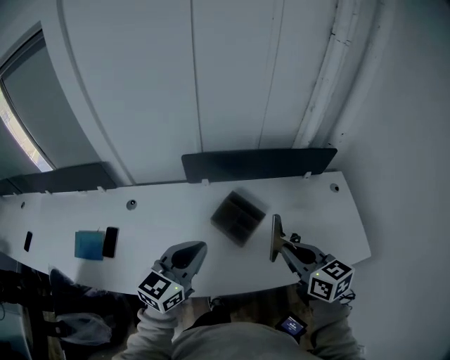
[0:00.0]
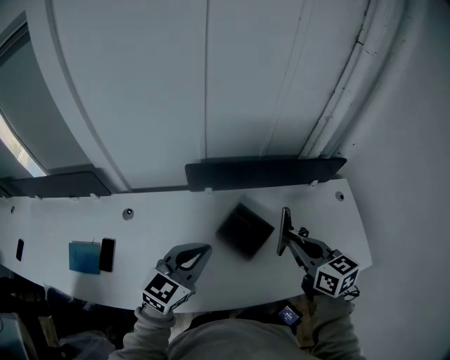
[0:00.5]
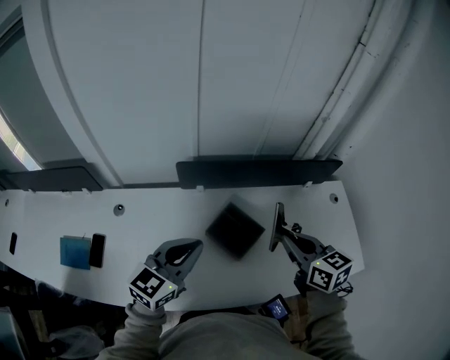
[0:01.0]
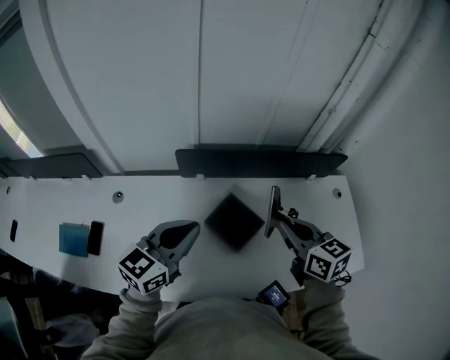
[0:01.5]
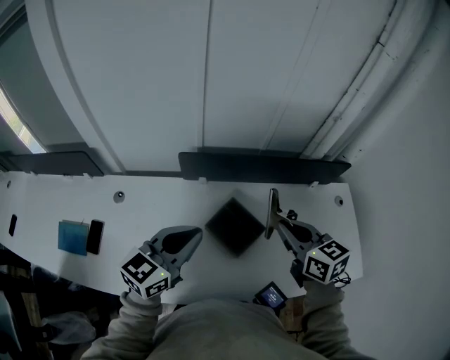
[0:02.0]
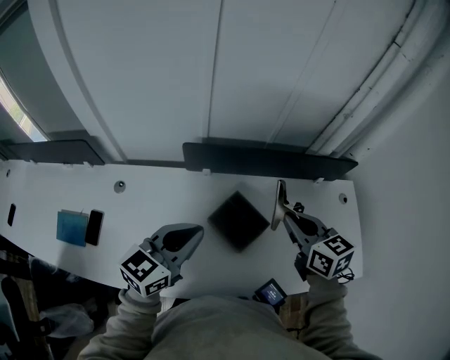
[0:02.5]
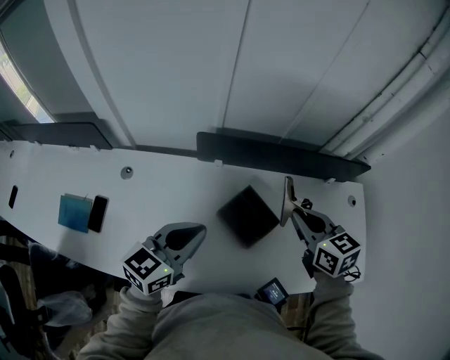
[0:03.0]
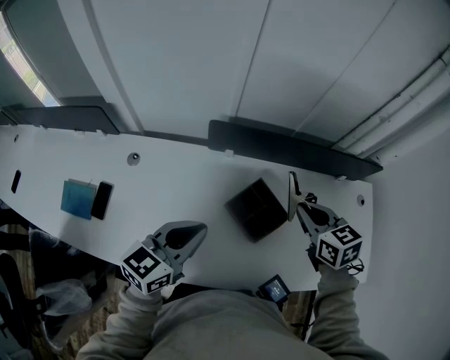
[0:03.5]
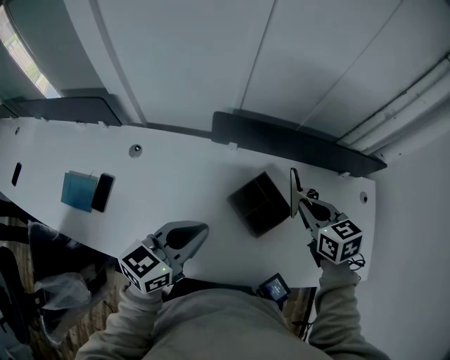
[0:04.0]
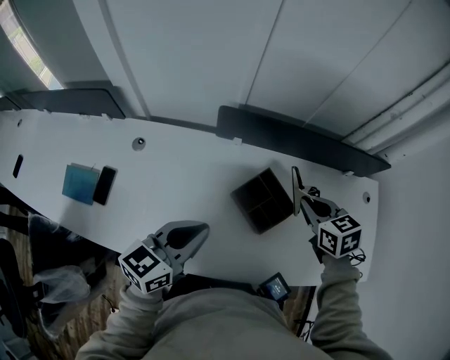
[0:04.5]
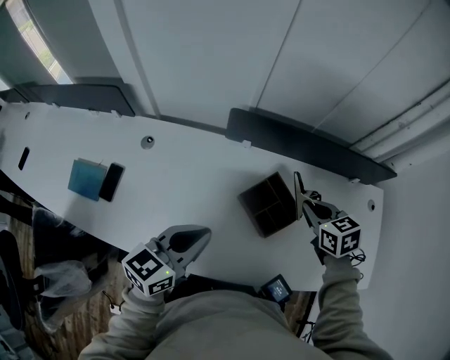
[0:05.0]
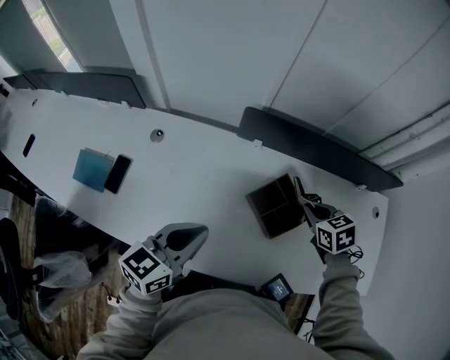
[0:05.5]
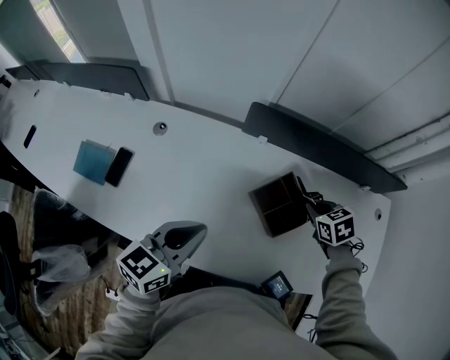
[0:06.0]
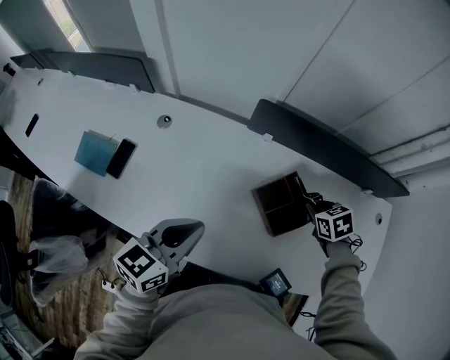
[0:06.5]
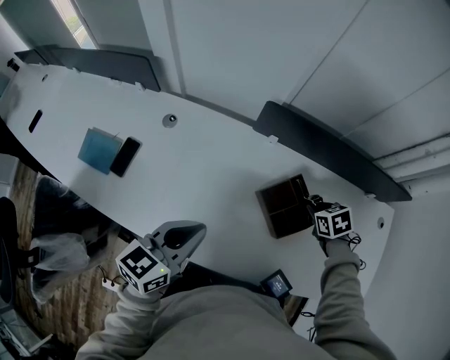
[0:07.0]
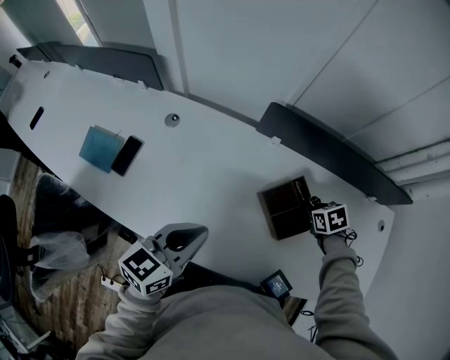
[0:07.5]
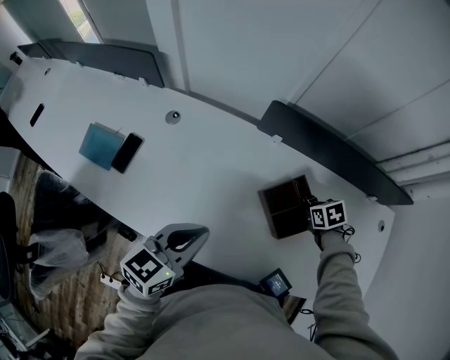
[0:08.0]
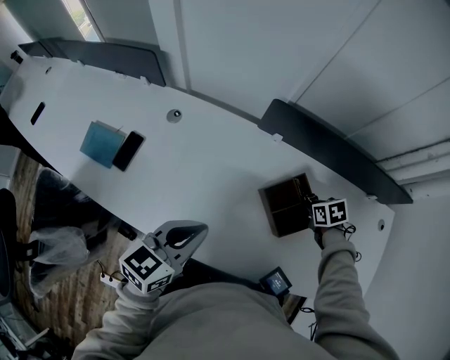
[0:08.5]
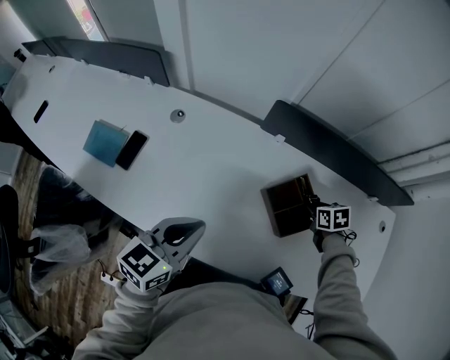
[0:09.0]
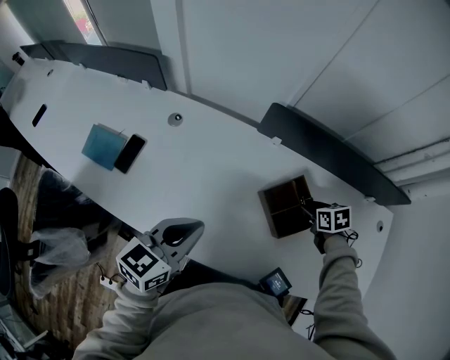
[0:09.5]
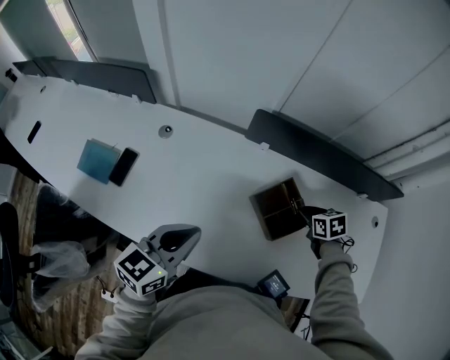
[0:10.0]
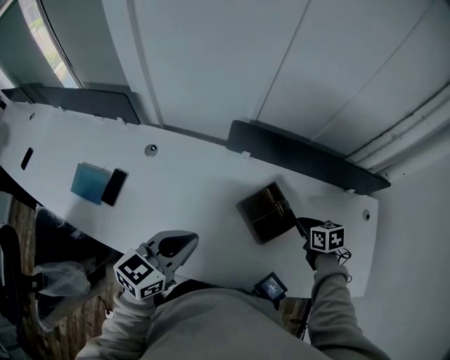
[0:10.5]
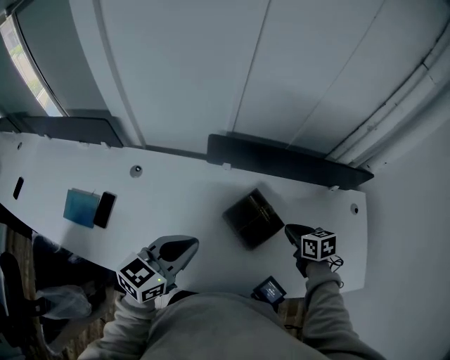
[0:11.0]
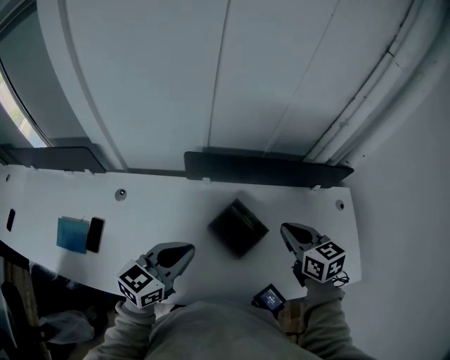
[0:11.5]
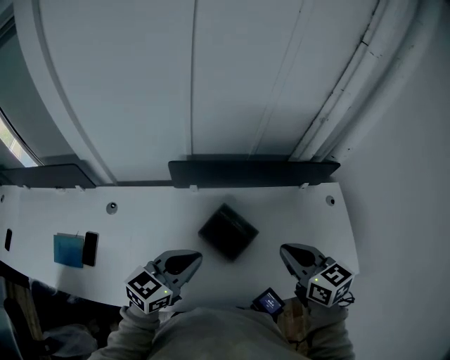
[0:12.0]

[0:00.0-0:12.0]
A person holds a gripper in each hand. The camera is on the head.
0:00.0 to 0:02.0: Both grippers move forward, some 15 cm.
0:02.0 to 0:04.0: The two grippers go some 10 cm downward.
0:04.0 to 0:06.0: The left gripper travels to the left by approximately 5 cm. Meanwhile the right gripper heads downward, covering approximately 10 cm, and rotates approximately 20 degrees.
0:06.0 to 0:08.0: The right gripper moves downward, some 10 cm.
0:08.0 to 0:10.0: There are only small adjustments of the grippers.
0:10.0 to 0:12.0: The left gripper is displaced to the right by some 15 cm, and rotates approximately 30 degrees. The right gripper goes about 30 cm upward and backward, and tilts its fingers approximately 30 degrees upward.

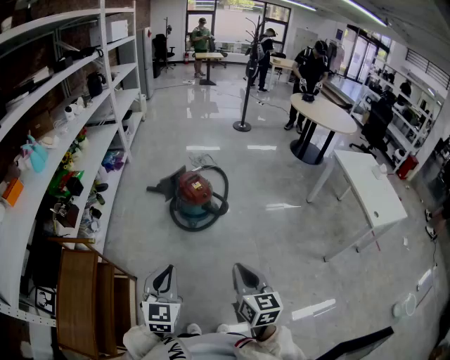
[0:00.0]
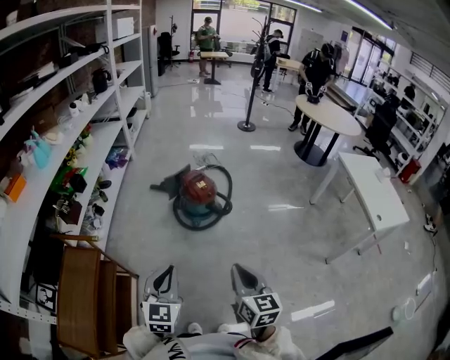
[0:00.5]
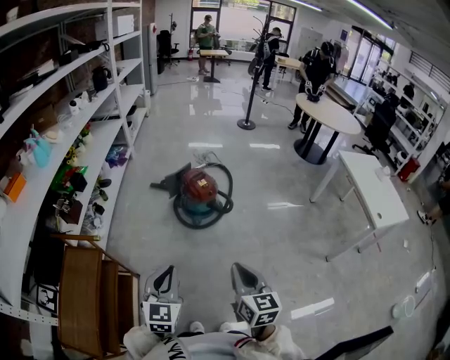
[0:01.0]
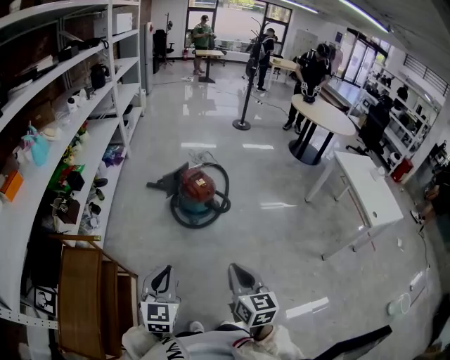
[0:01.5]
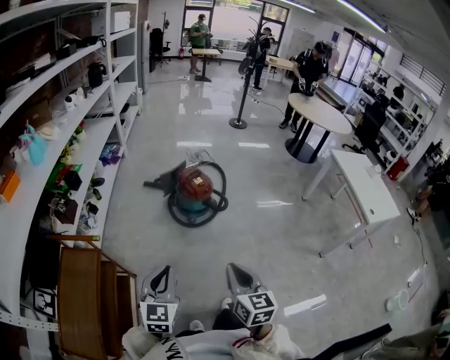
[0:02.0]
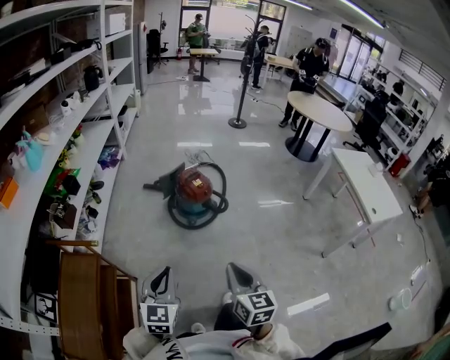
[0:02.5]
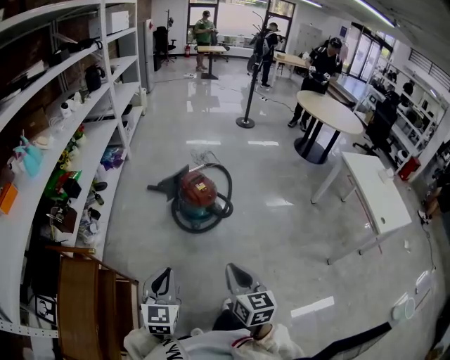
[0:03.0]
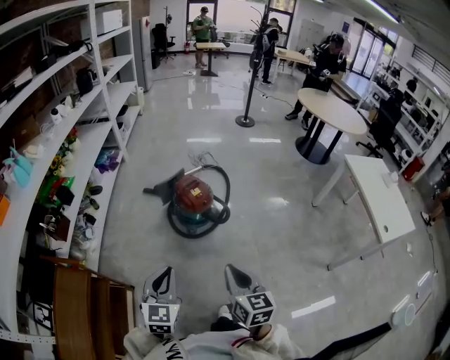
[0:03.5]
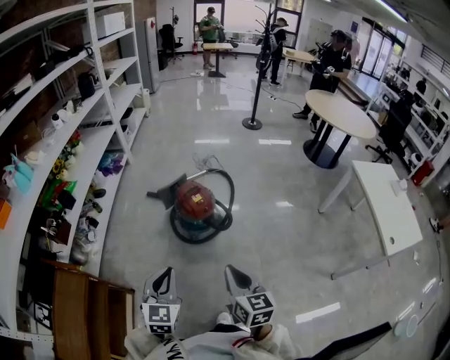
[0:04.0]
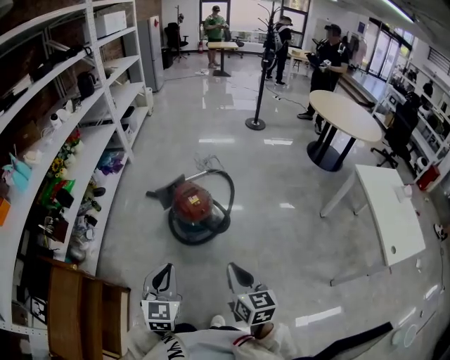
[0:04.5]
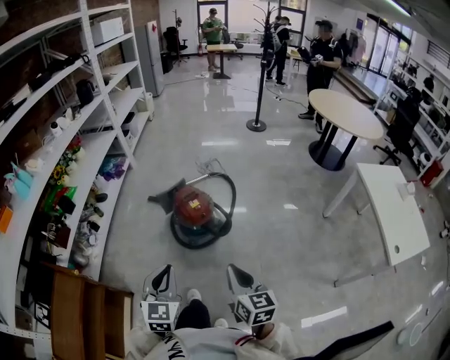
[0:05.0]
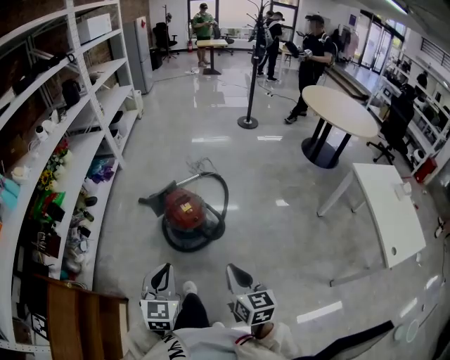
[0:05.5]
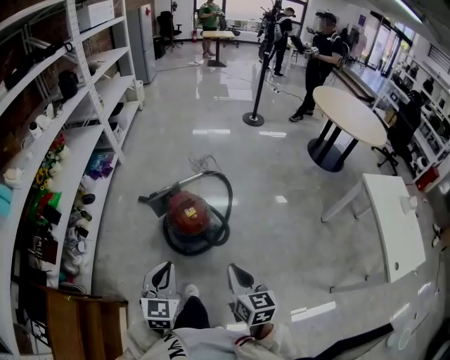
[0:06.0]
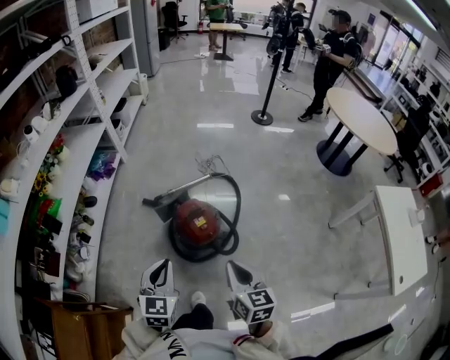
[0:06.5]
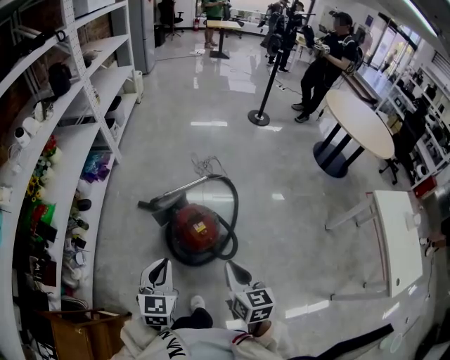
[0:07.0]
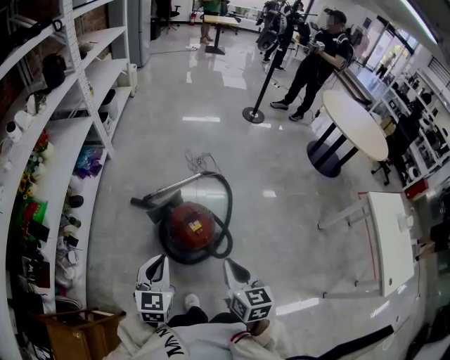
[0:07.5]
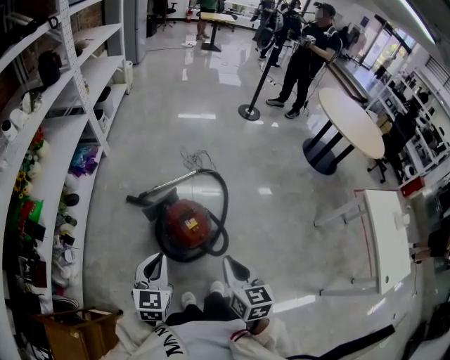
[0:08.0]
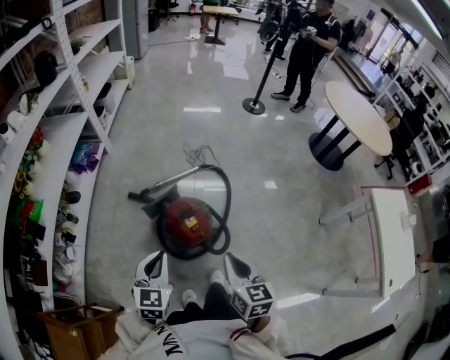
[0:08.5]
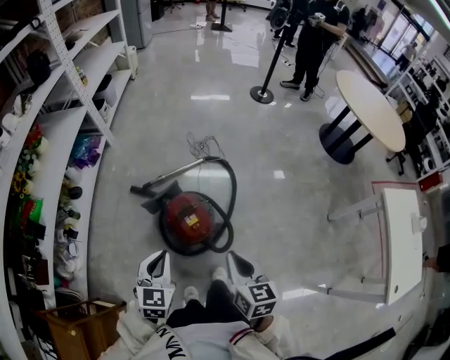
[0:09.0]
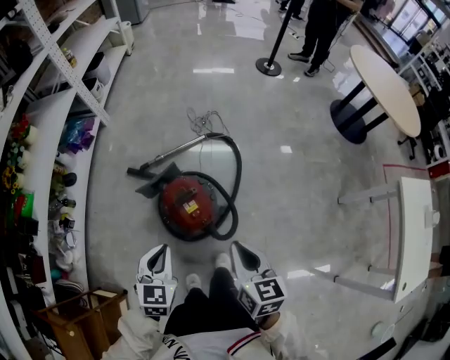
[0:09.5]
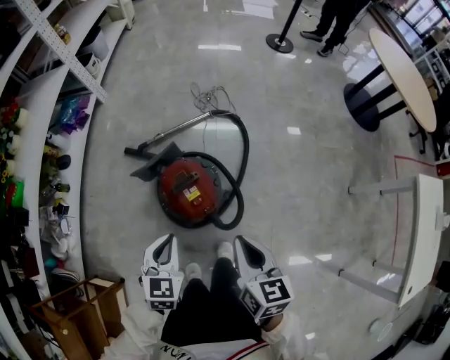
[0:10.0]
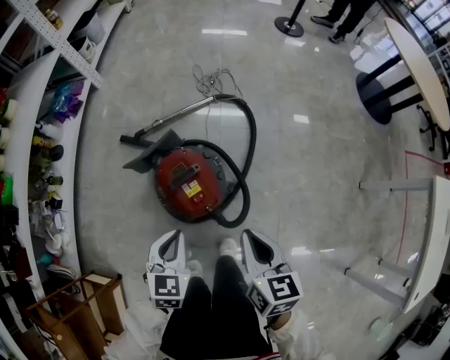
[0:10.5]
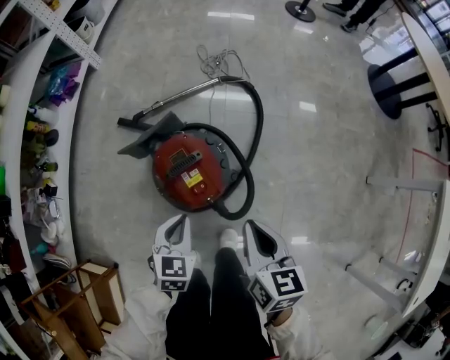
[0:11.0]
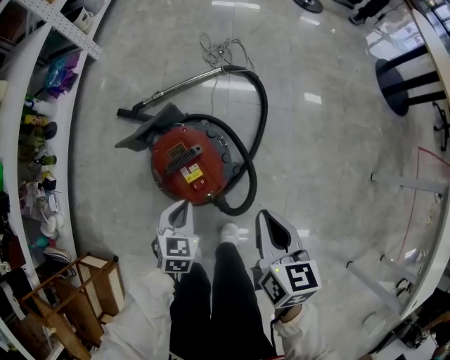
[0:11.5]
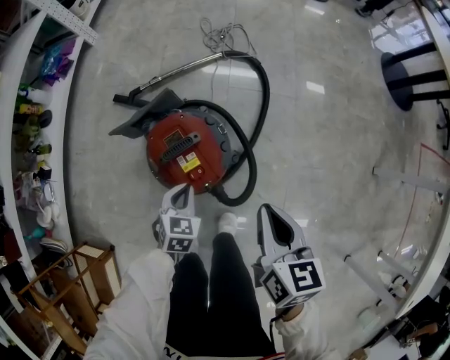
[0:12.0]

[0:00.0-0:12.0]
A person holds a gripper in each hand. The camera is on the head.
0:00.0 to 0:02.0: Both grippers move to the left, approximately 5 cm.
0:02.0 to 0:04.0: The grippers both shift forward and to the right by some 20 cm.
0:04.0 to 0:06.0: The grippers both shift forward by about 15 cm.
0:06.0 to 0:08.0: Both grippers travel together forward and to the left, approximately 15 cm.
0:08.0 to 0:10.0: The left gripper moves downward and to the right, about 15 cm. Meanwhile the right gripper travels downward, forward and to the right by roughly 15 cm.
0:10.0 to 0:12.0: The left gripper moves downward, roughly 25 cm. Meanwhile the right gripper goes about 10 cm downward and forward.

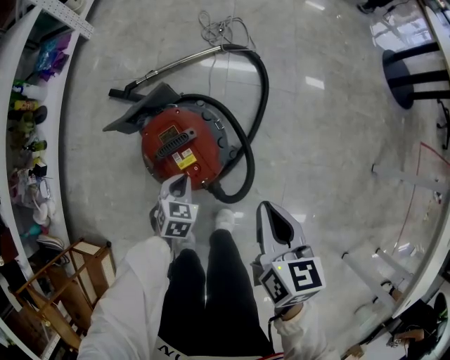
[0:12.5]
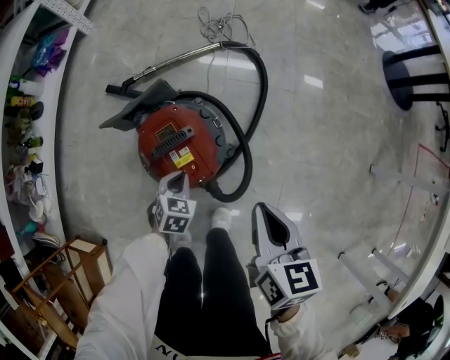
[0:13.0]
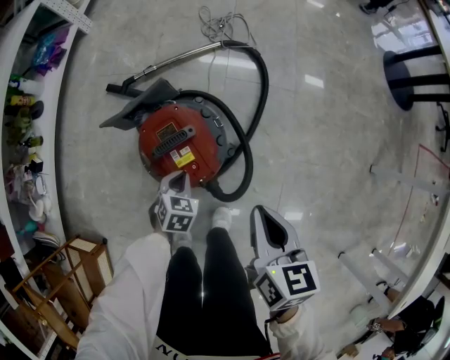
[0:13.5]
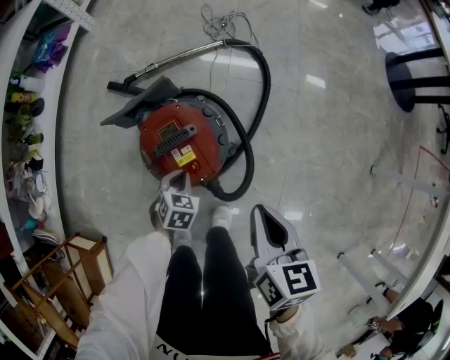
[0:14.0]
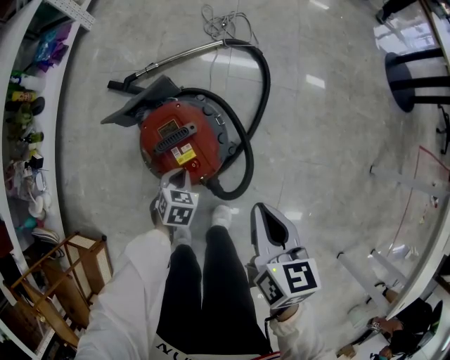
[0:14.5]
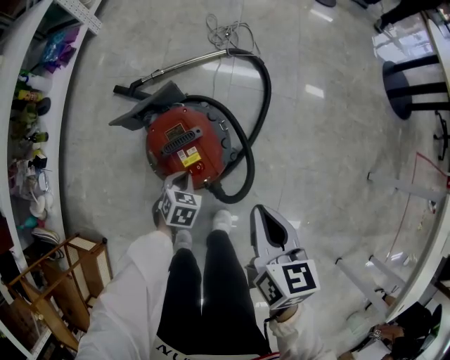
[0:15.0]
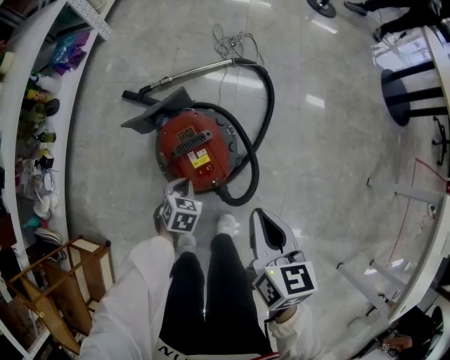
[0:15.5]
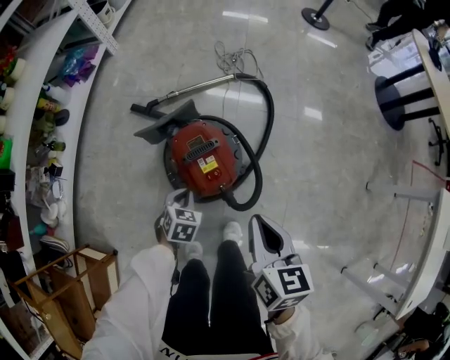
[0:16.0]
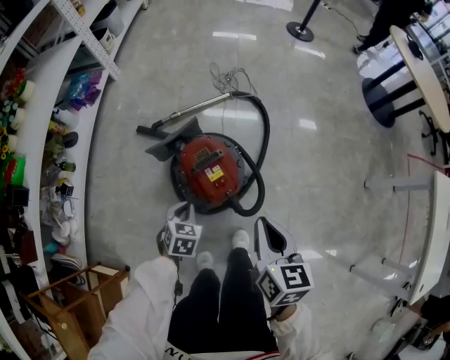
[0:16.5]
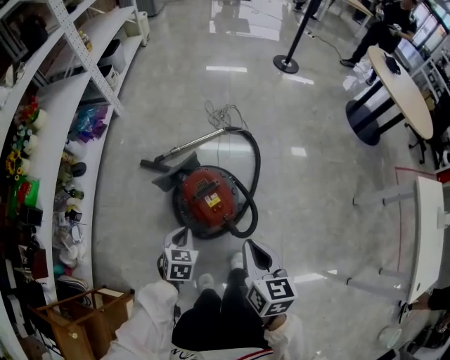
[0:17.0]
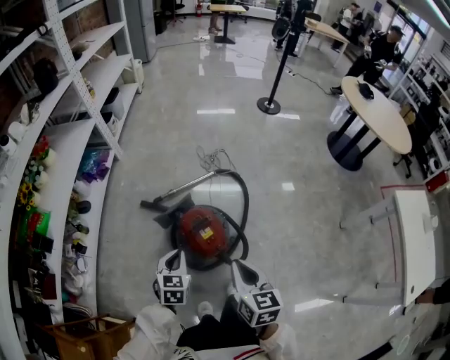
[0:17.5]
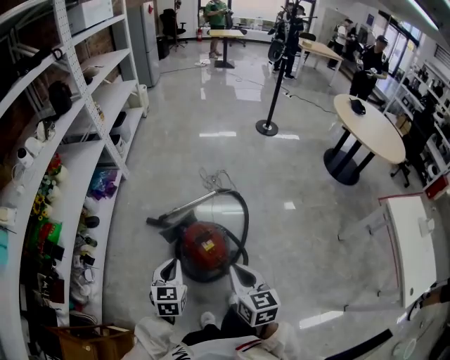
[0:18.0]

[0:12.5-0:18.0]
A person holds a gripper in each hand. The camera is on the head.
0:12.5 to 0:14.5: The grippers move only a little.
0:14.5 to 0:16.0: The left gripper travels upward and to the left by about 10 cm, while the right gripper heads to the left, covering roughly 5 cm.
0:16.0 to 0:18.0: The right gripper is displaced upward by some 15 cm; the left gripper goes about 35 cm upward, and angles its fingers upward, by some 30 degrees.
